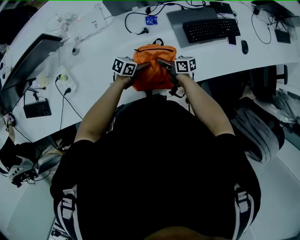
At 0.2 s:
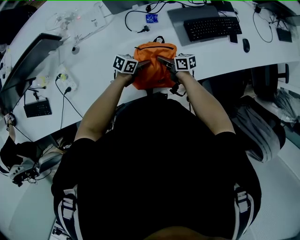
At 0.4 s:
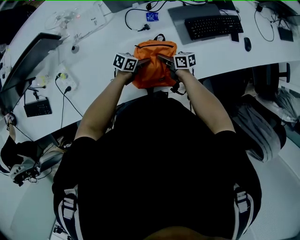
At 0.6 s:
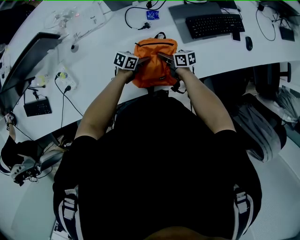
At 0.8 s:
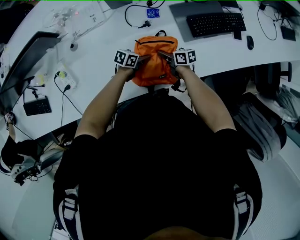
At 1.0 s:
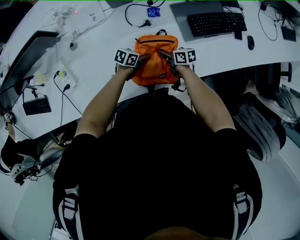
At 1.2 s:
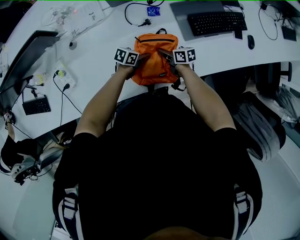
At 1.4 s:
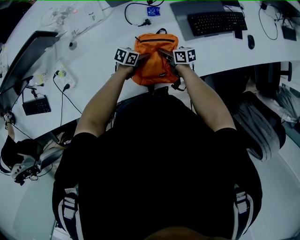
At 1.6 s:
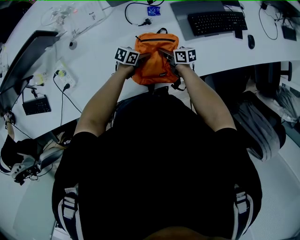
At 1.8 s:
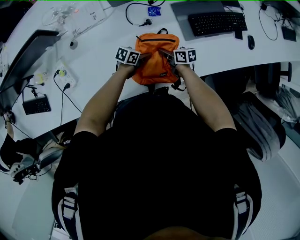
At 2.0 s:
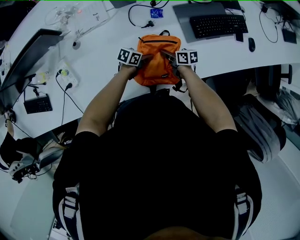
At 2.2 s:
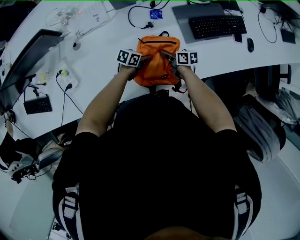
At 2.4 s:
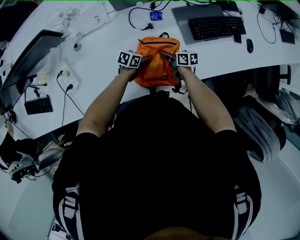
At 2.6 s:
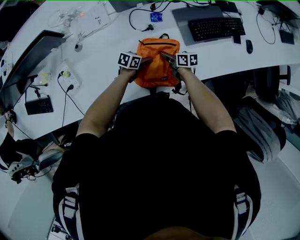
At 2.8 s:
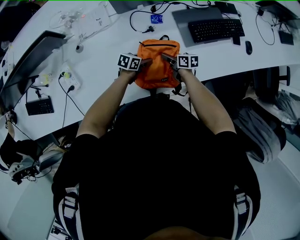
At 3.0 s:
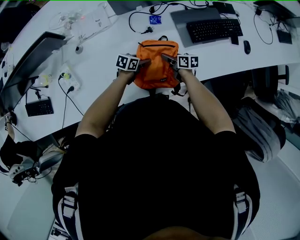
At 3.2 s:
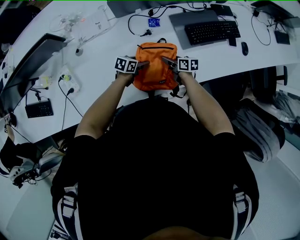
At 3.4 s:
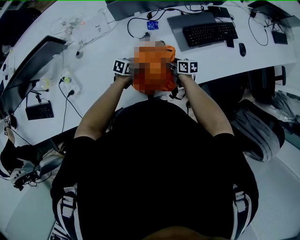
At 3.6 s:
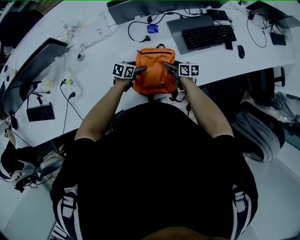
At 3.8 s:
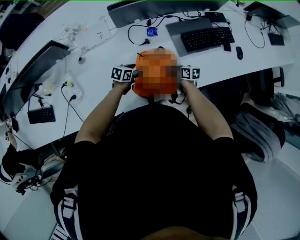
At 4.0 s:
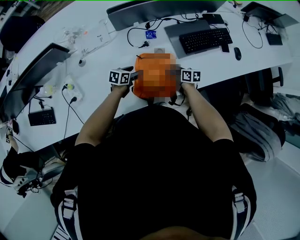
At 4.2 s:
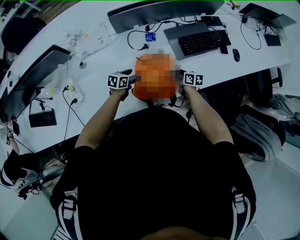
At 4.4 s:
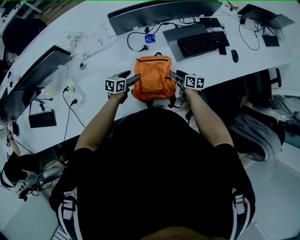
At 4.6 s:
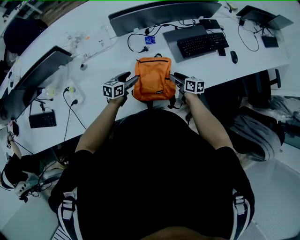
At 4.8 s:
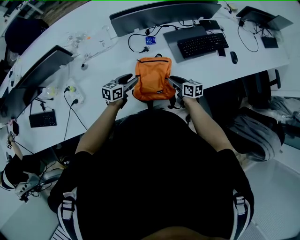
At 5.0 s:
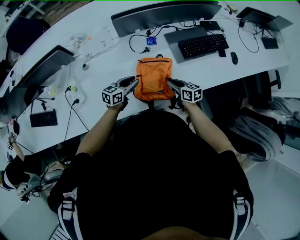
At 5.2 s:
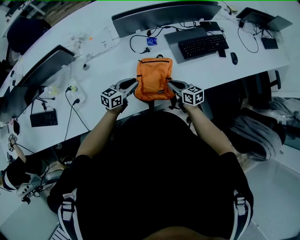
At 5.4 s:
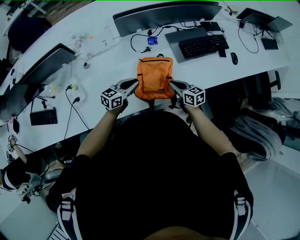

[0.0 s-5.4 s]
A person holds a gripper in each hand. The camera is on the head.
0.0 to 1.4 s: Both grippers move downward, some 5 cm.
1.4 to 2.8 s: The right gripper opens. Meanwhile the left gripper opens.
2.8 to 4.0 s: The right gripper goes roughly 5 cm to the right; the left gripper changes place by about 5 cm.
4.0 to 5.4 s: Both grippers travel together upward and backward, about 15 cm. The left gripper rotates roughly 30 degrees, and closes its fingers, while the right gripper swivels about 20 degrees, and closes.

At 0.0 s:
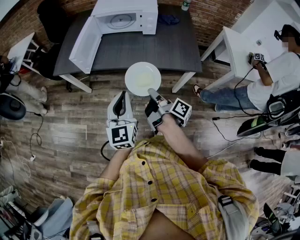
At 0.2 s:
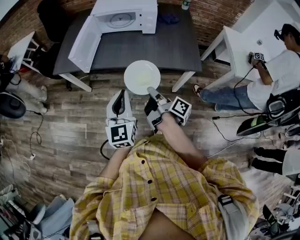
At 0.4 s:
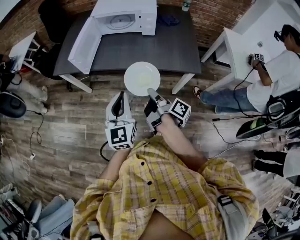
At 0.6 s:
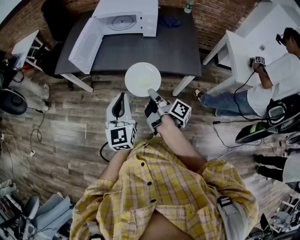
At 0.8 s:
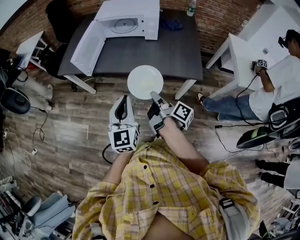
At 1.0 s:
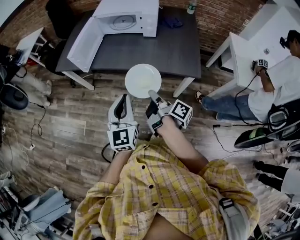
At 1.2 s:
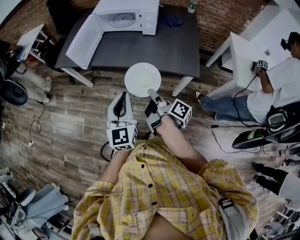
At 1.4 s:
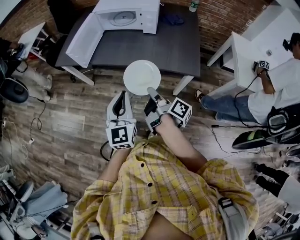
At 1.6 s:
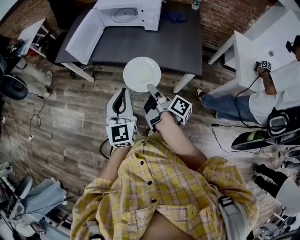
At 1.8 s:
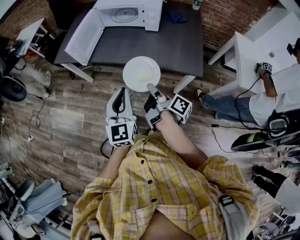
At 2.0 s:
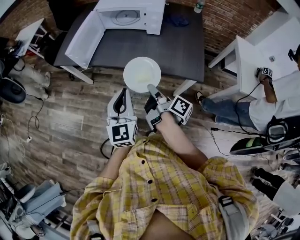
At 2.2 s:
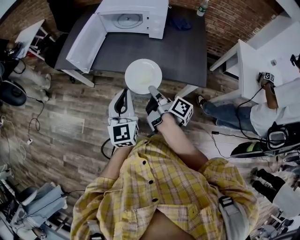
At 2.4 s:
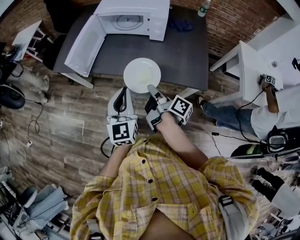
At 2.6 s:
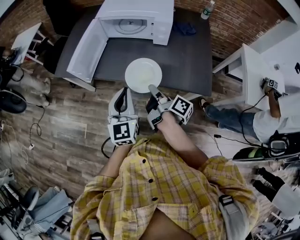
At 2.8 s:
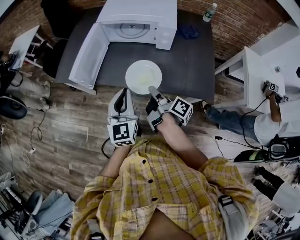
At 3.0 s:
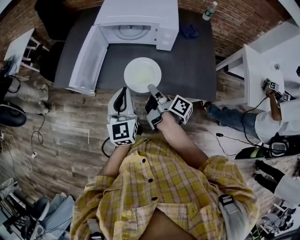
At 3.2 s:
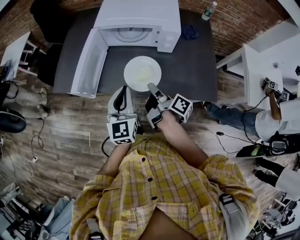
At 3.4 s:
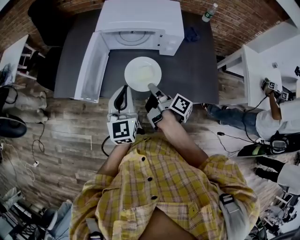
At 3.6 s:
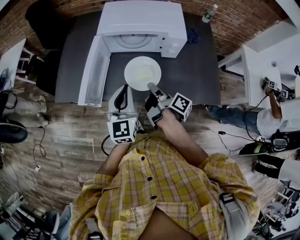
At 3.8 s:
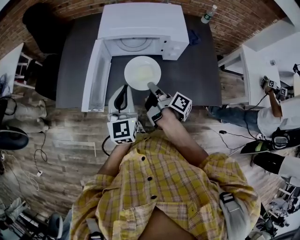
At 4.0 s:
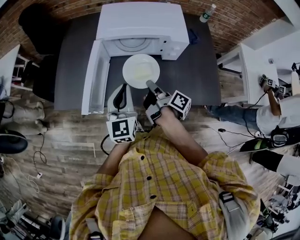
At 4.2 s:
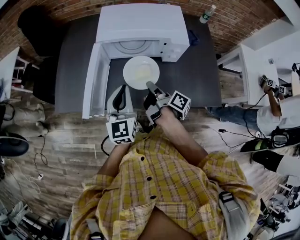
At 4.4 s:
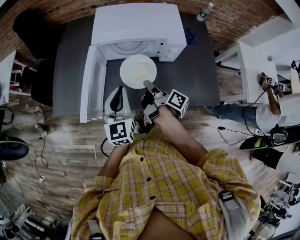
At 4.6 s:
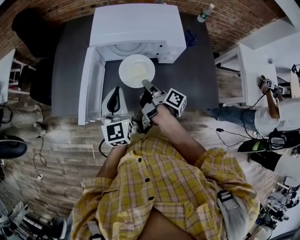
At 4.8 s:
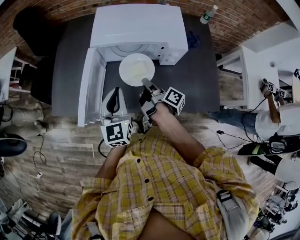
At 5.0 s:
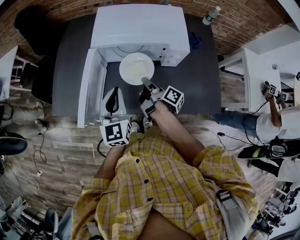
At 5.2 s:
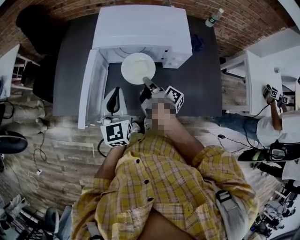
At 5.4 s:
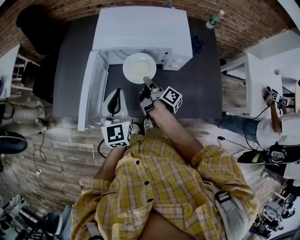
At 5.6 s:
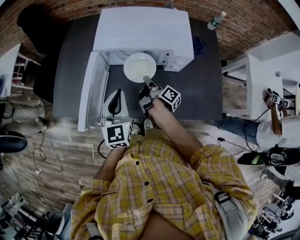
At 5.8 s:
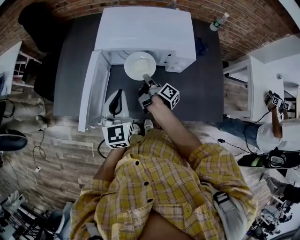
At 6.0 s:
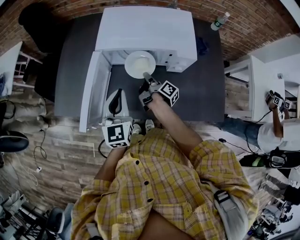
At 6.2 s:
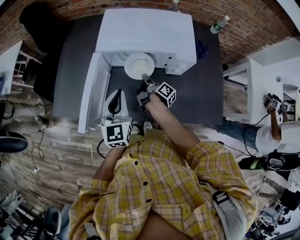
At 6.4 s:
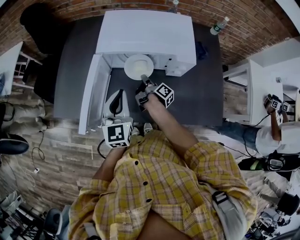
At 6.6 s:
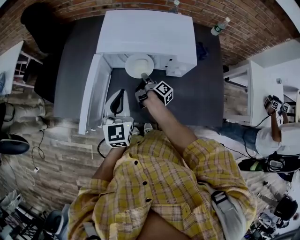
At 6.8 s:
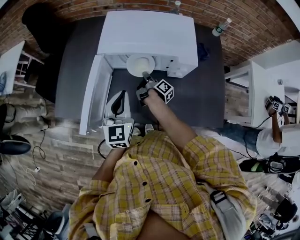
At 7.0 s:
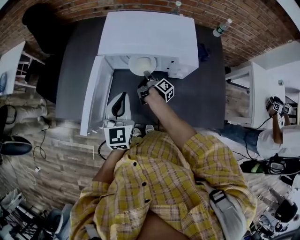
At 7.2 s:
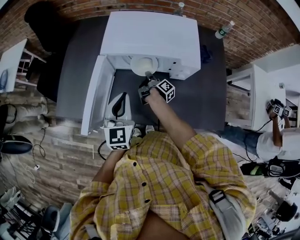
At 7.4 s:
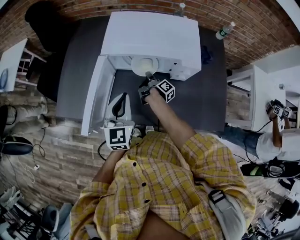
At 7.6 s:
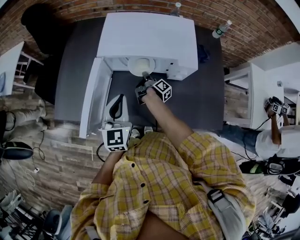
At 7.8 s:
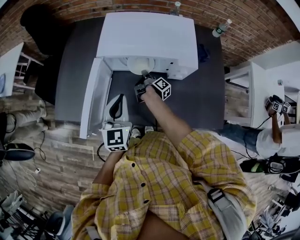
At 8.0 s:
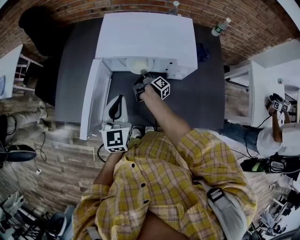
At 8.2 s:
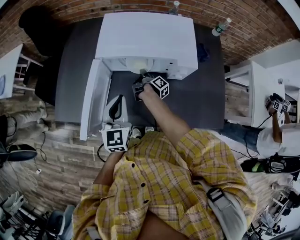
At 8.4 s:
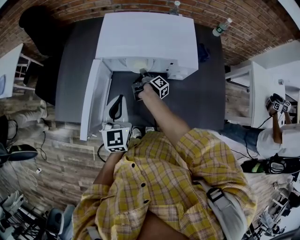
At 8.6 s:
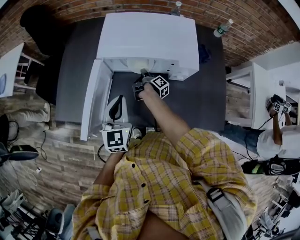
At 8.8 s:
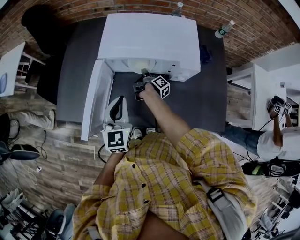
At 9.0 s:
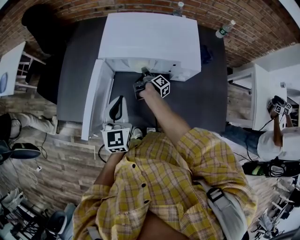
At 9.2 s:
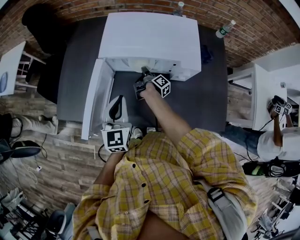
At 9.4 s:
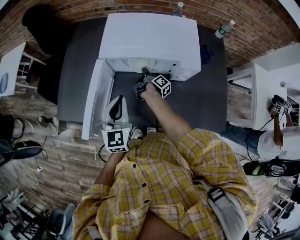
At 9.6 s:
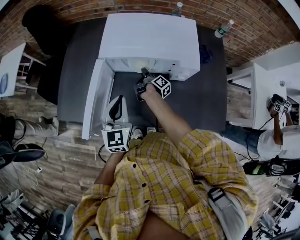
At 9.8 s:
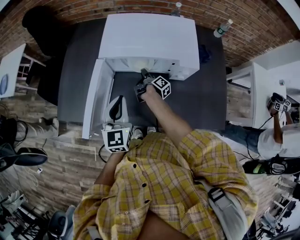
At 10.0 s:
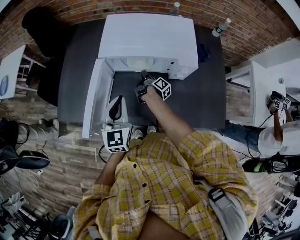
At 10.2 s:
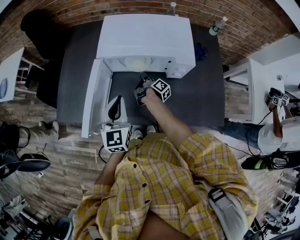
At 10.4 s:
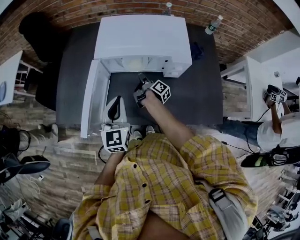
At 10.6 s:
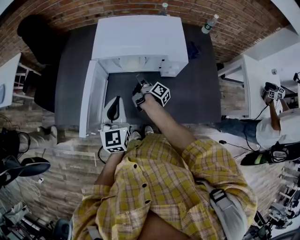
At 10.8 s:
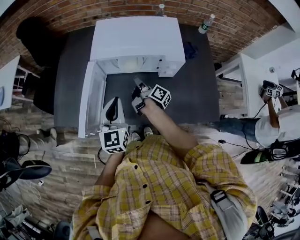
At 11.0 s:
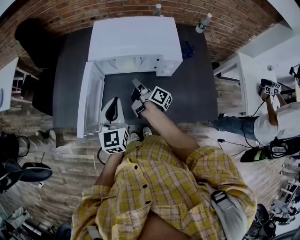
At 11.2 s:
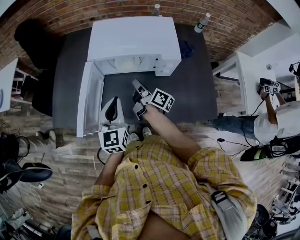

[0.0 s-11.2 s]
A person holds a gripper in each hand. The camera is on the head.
0.0 to 1.6 s: The left gripper shifts by approximately 10 cm.
1.6 to 3.2 s: The left gripper moves about 30 cm.
3.2 to 4.8 s: The left gripper ends up approximately 15 cm from where it was.

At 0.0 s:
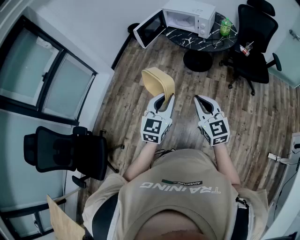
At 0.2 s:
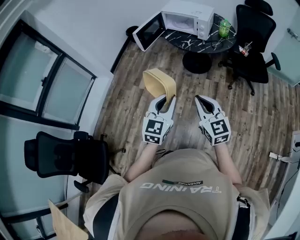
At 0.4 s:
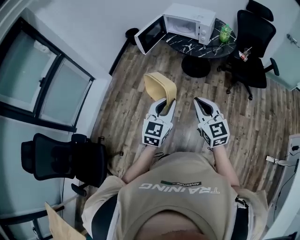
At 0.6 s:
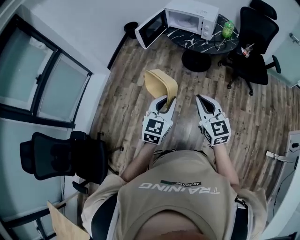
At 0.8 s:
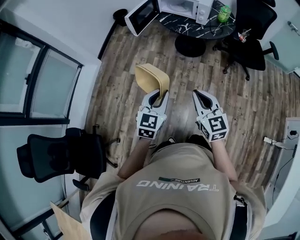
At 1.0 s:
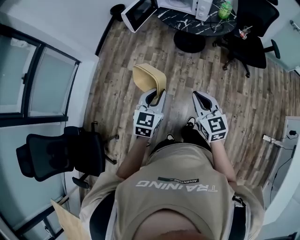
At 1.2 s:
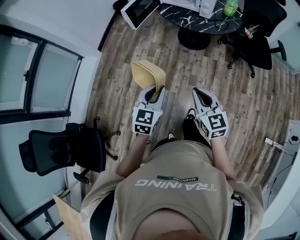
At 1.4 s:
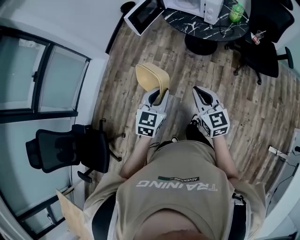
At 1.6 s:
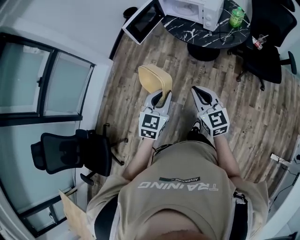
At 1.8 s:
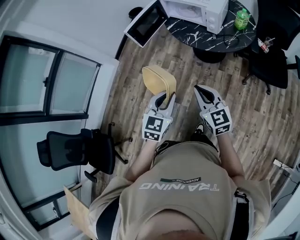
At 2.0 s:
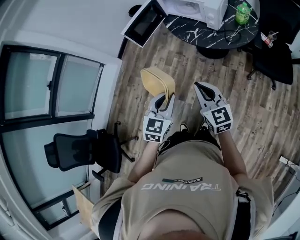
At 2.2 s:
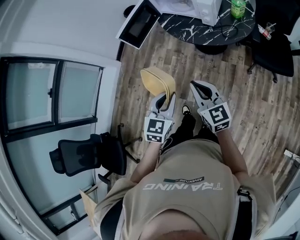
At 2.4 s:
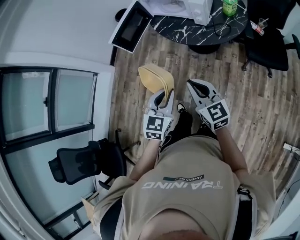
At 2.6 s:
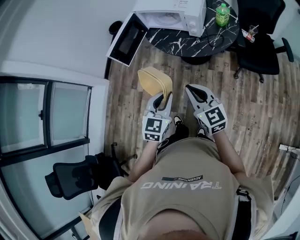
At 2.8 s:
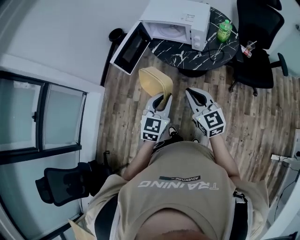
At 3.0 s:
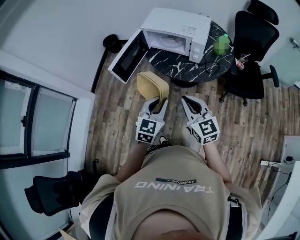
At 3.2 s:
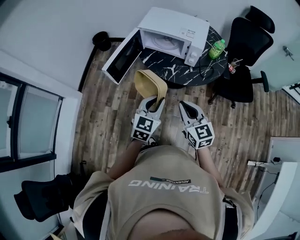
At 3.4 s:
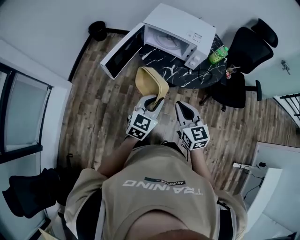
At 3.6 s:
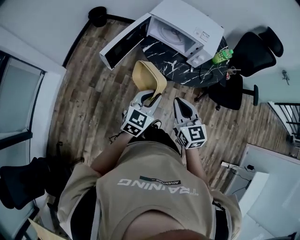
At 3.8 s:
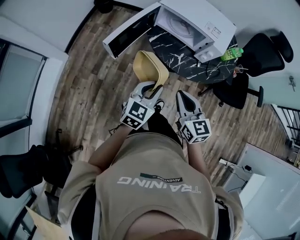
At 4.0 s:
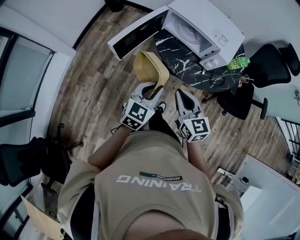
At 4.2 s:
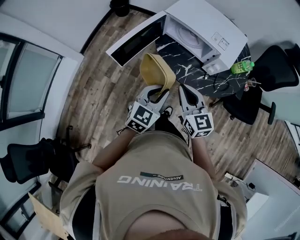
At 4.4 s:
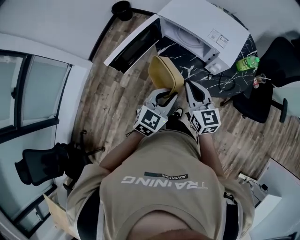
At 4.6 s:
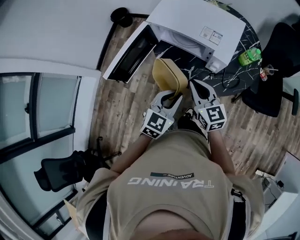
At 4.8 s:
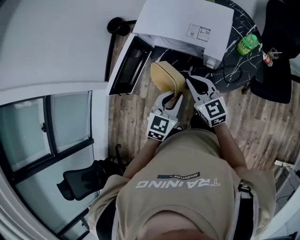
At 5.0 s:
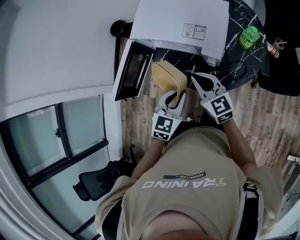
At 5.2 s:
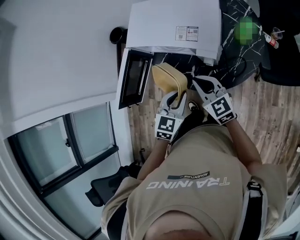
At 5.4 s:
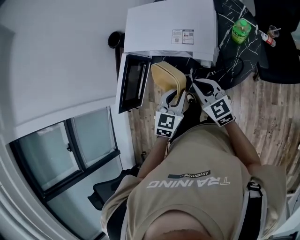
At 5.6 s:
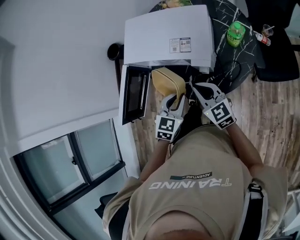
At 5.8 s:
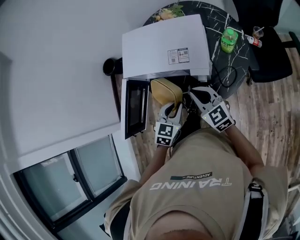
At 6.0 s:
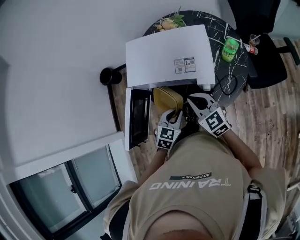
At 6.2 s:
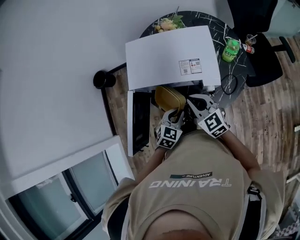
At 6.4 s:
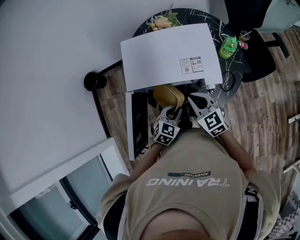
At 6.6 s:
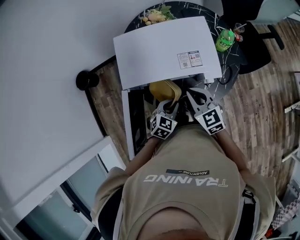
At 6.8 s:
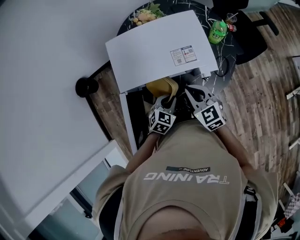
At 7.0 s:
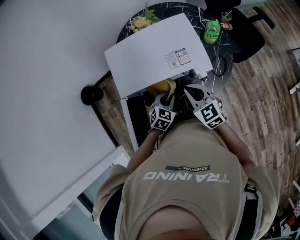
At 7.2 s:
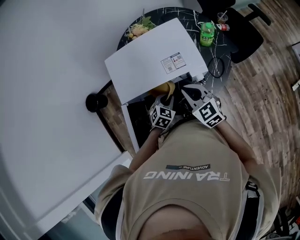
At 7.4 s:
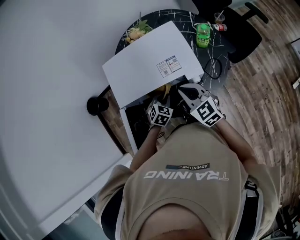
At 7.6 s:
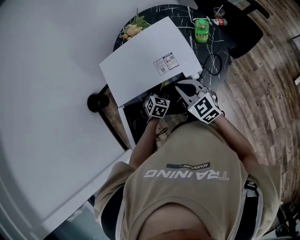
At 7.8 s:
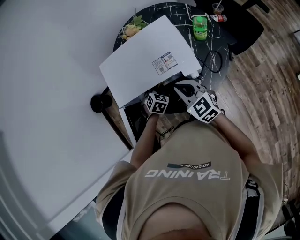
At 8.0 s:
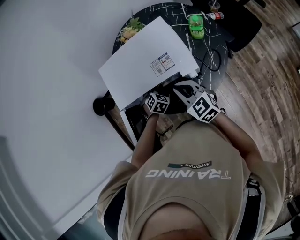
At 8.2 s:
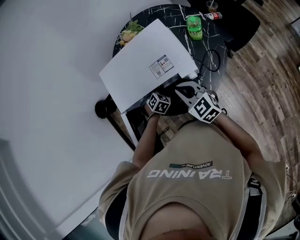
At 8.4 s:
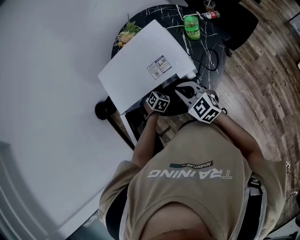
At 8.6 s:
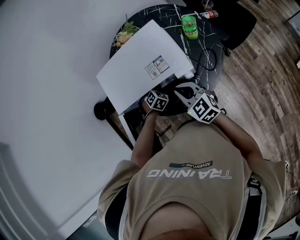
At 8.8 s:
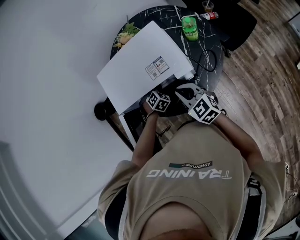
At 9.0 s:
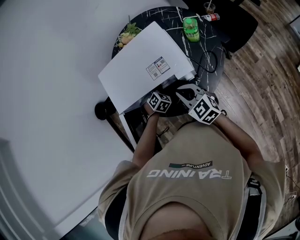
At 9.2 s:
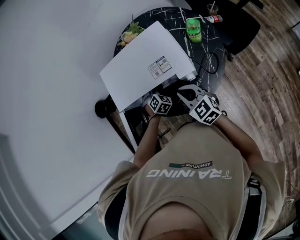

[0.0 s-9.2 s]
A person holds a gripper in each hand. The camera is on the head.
0.0 to 1.6 s: The left gripper moves forward and downward, roughly 20 cm. The right gripper travels forward by some 20 cm.
1.6 to 3.0 s: Both grippers move forward, approximately 20 cm.
3.0 to 4.6 s: Both grippers travel together forward, roughly 20 cm.
4.6 to 6.2 s: The right gripper is displaced forward by approximately 10 cm; the left gripper is displaced forward and downward by approximately 15 cm, and changes its angle by about 30 degrees.
6.2 to 7.6 s: The left gripper travels forward and downward by roughly 15 cm, and rotates some 20 degrees.
